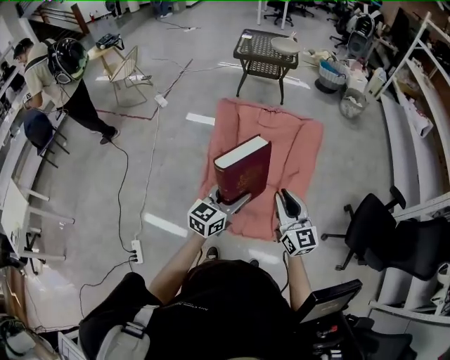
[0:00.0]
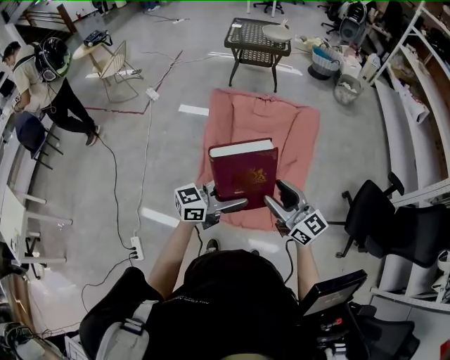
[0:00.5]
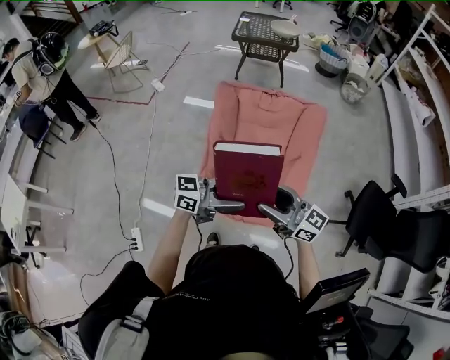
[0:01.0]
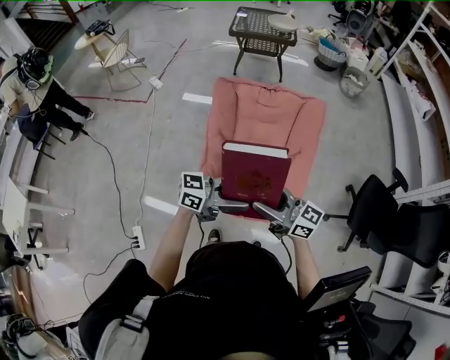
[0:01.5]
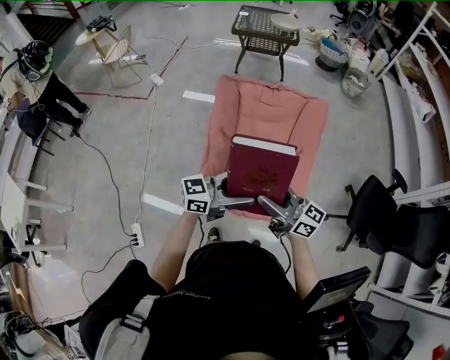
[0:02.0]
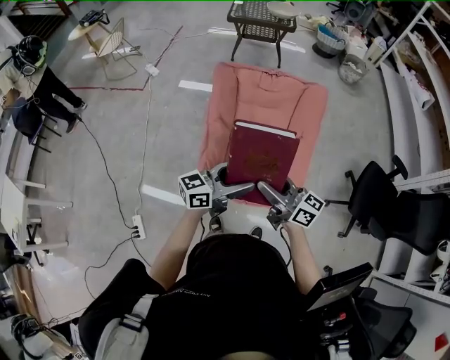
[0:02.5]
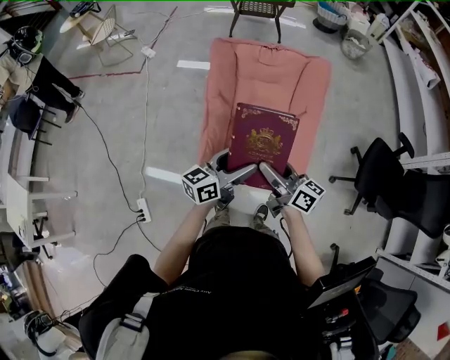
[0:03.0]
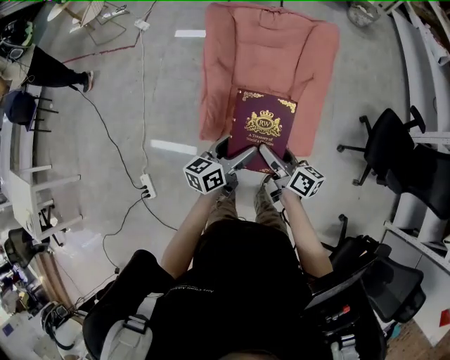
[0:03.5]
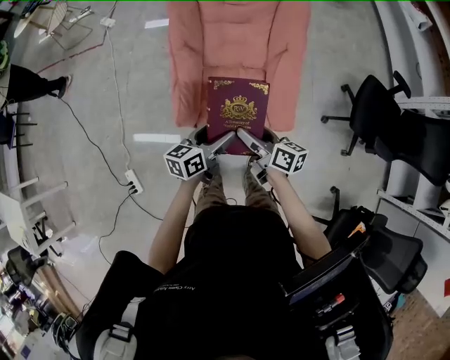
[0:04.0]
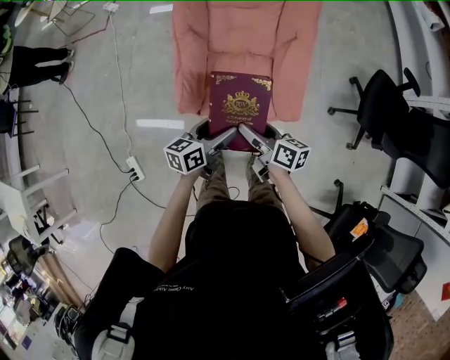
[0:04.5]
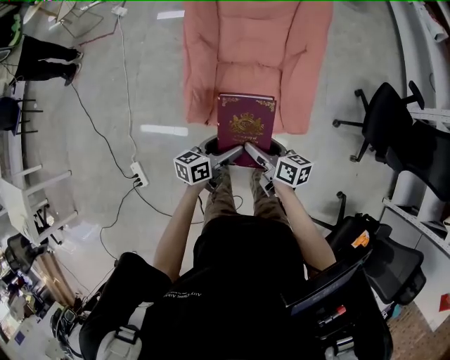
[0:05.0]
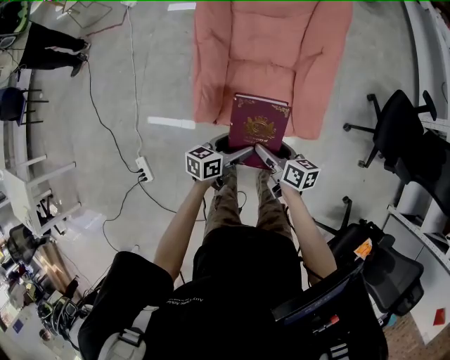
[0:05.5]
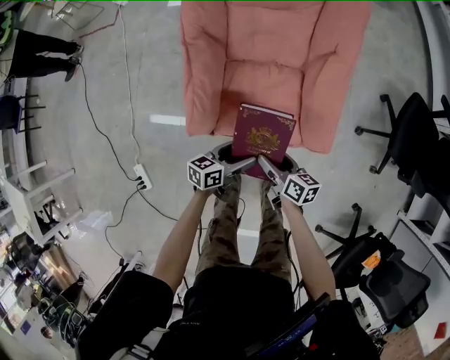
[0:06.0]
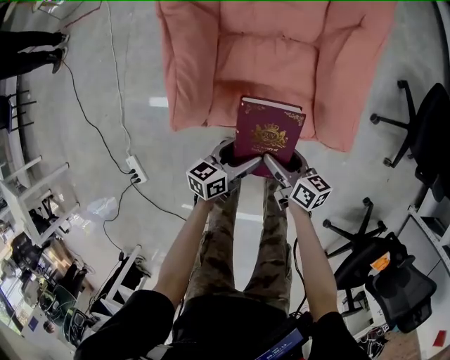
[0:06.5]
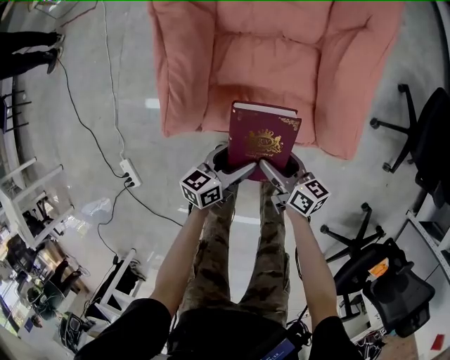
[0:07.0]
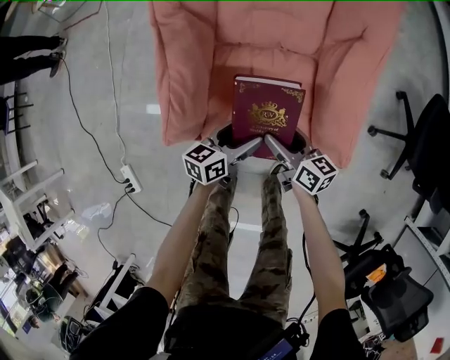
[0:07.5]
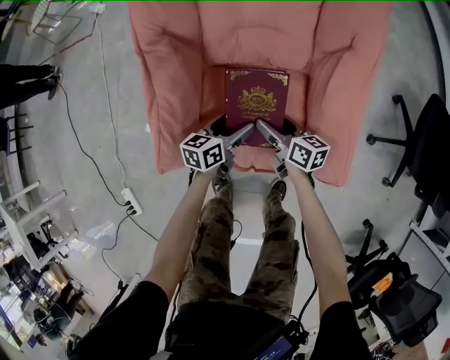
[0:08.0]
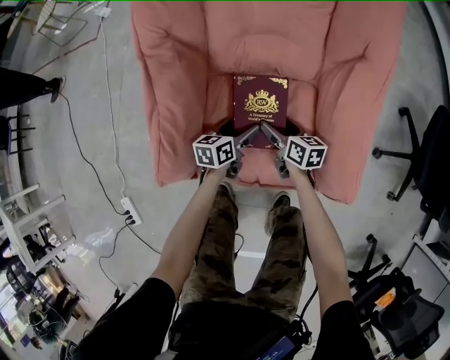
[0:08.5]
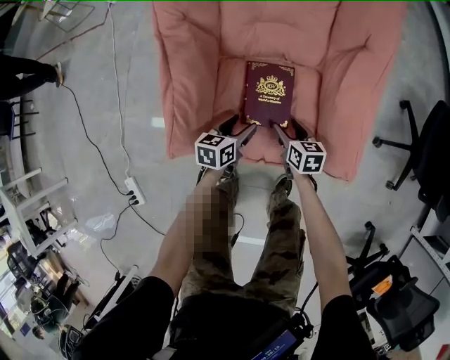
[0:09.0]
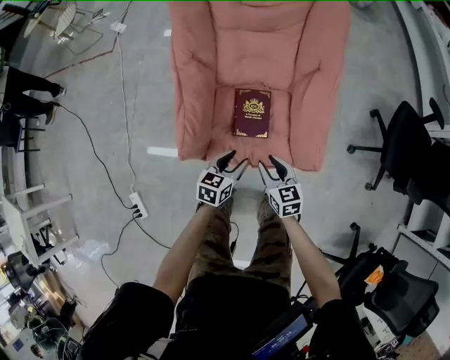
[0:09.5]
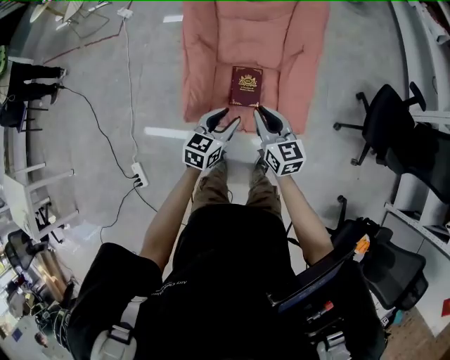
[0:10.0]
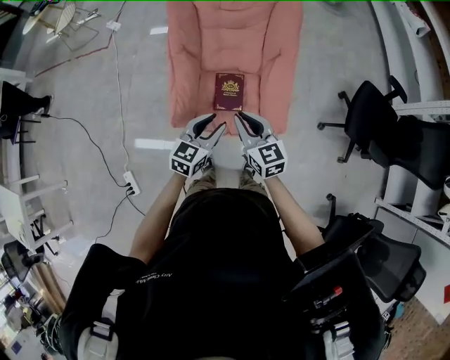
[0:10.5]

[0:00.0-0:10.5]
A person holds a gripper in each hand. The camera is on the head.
0:00.0 to 0:02.0: The right gripper ends up roughly 10 cm from where it was, swivels some 40 degrees, and opens up. Meanwhile the left gripper changes place by approximately 5 cm, and turns by about 40 degrees.
0:02.0 to 0:04.0: Both grippers travel together downward, about 20 cm. The right gripper swivels approximately 40 degrees. Meanwhile the left gripper swivels about 40 degrees.
0:04.0 to 0:06.5: The grippers both shift downward by about 30 cm.
0:06.5 to 0:08.5: Both grippers move forward and downward, roughly 25 cm.
0:08.5 to 0:10.5: Both grippers move upward, approximately 50 cm. The right gripper changes its angle by approximately 40 degrees, and closes up, while the left gripper rotates some 40 degrees, and closes its fingers.

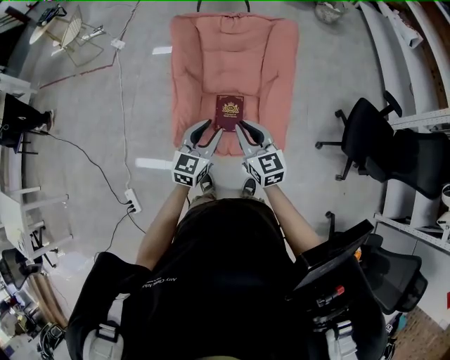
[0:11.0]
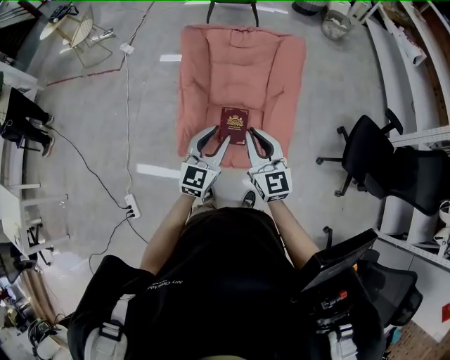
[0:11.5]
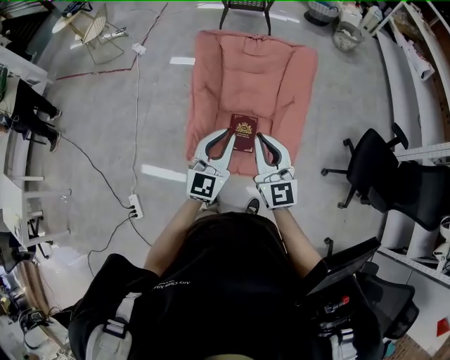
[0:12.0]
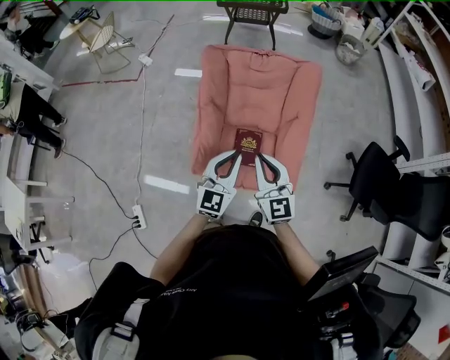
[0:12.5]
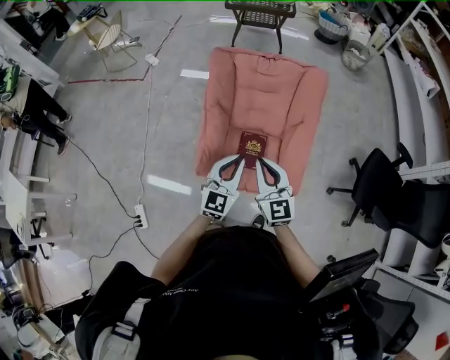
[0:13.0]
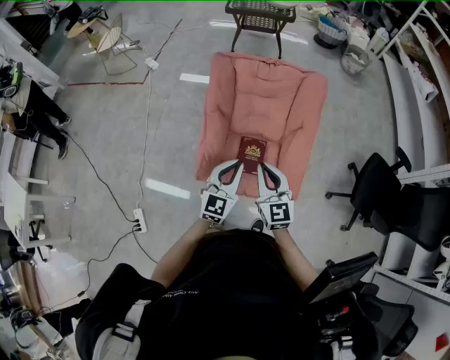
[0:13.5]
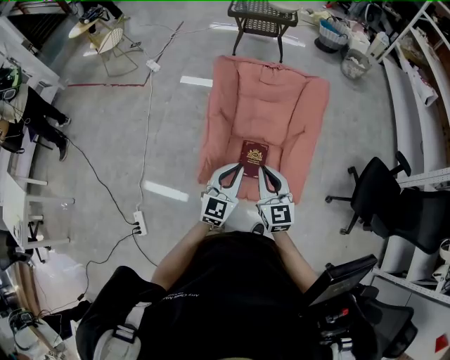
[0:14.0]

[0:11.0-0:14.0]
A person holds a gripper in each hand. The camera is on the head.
0:11.0 to 0:12.5: The two grippers go some 10 cm upward. The left gripper closes up.
0:12.5 to 0:14.0: The grippers make only small movements.

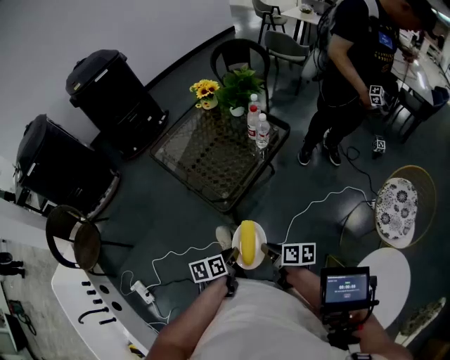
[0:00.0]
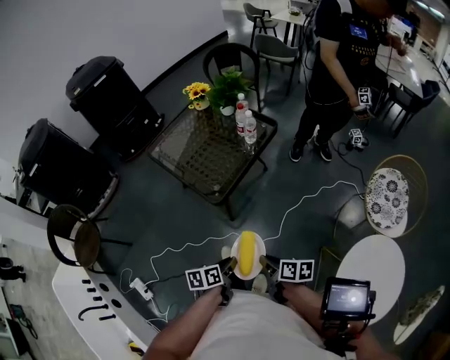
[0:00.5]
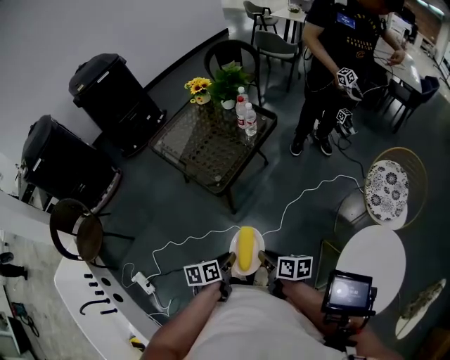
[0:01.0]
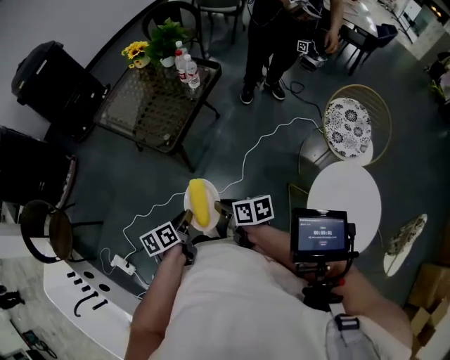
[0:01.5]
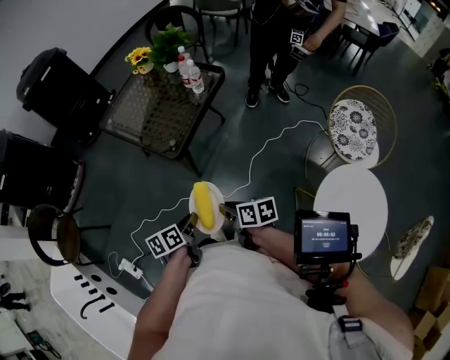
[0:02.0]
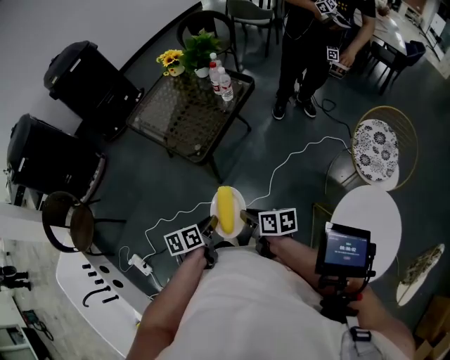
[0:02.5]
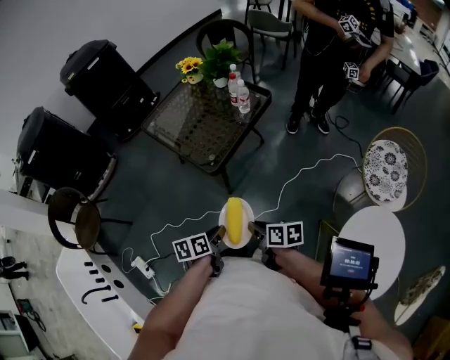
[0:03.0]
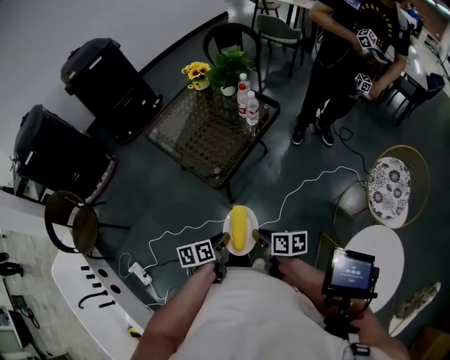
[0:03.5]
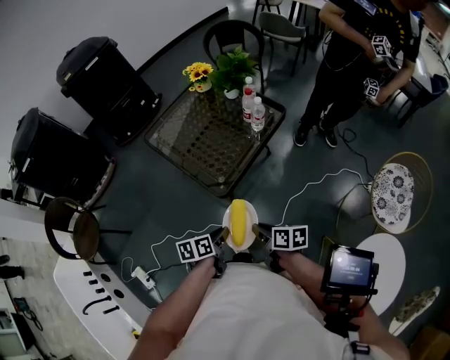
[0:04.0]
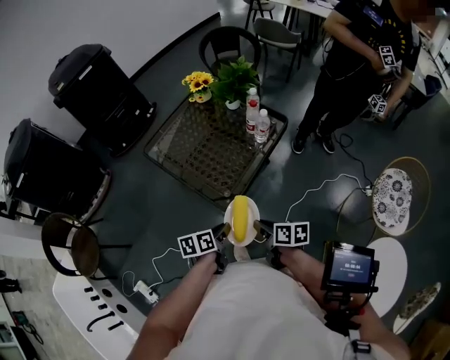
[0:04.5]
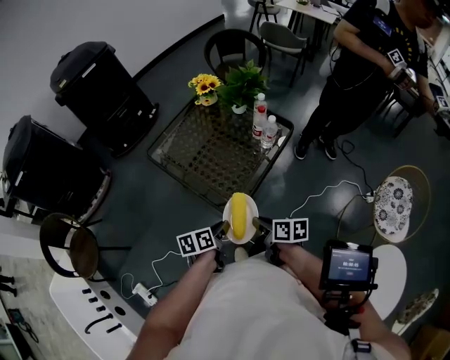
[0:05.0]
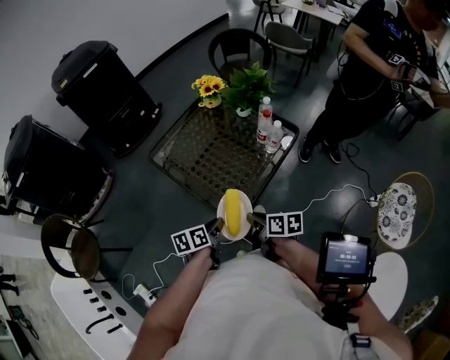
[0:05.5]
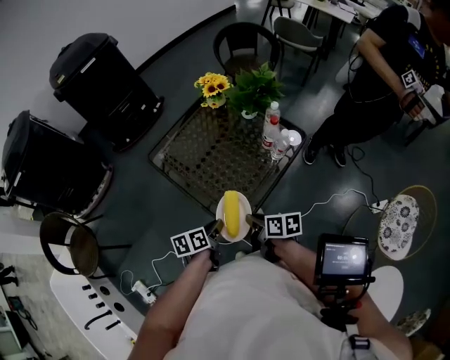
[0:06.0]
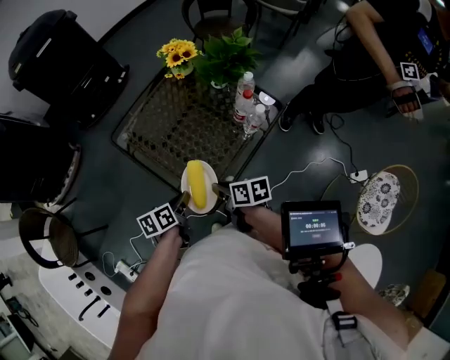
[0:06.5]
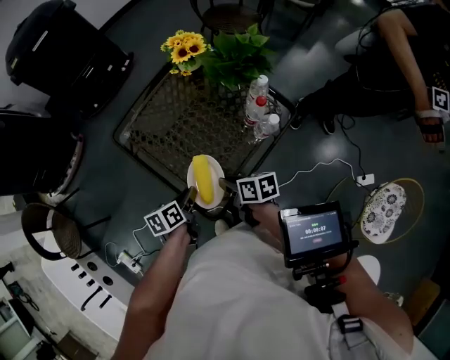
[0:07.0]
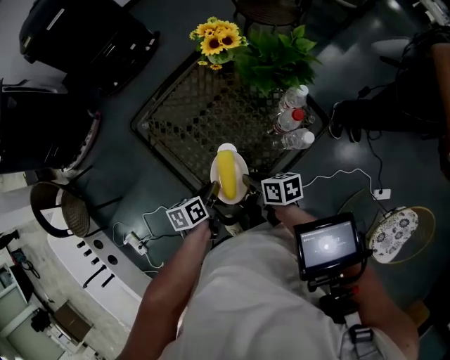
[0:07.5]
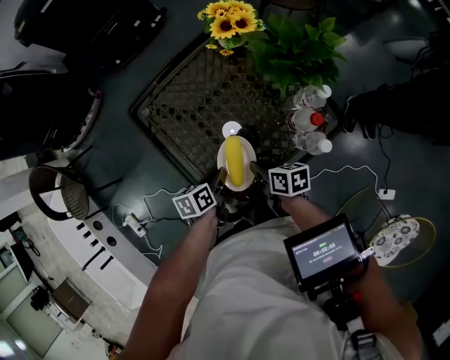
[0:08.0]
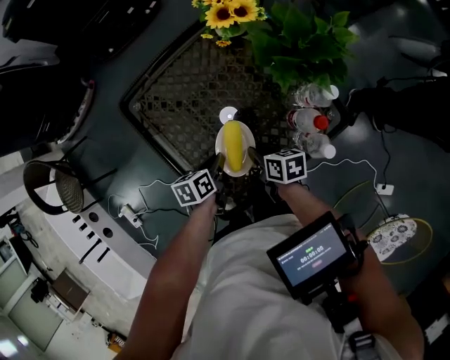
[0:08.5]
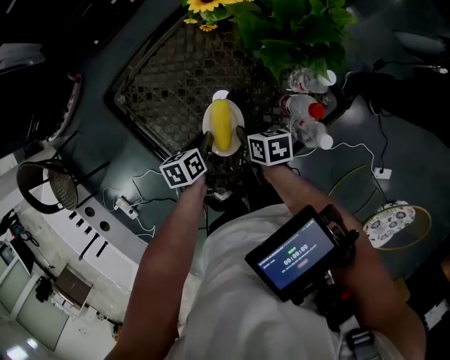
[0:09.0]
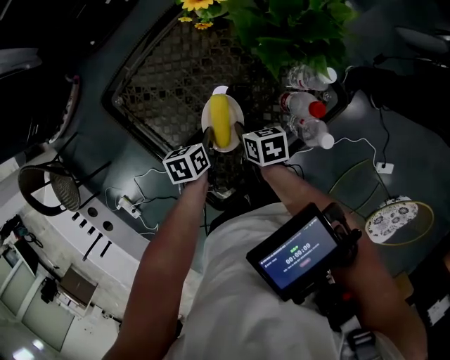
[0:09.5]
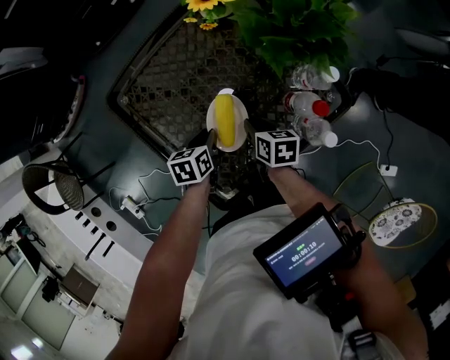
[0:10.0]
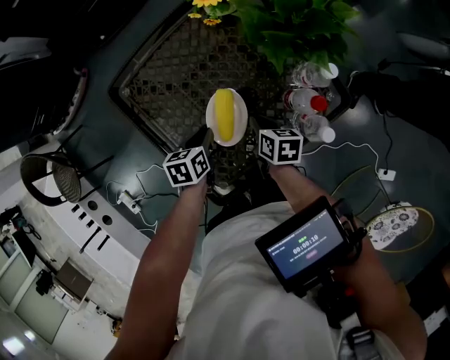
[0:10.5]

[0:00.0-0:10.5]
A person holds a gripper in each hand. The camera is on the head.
0:00.0 to 0:02.0: Both grippers travel together backward, roughly 15 cm.
0:02.0 to 0:04.0: Both grippers move forward, roughly 15 cm.
0:04.0 to 0:06.5: The two grippers go about 30 cm forward.
0:06.5 to 0:08.5: Both grippers move forward, downward and to the right, roughly 20 cm.
0:08.5 to 0:10.5: The grippers stay close to where they were, moving slightly.

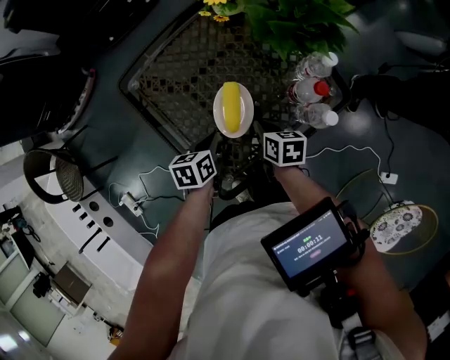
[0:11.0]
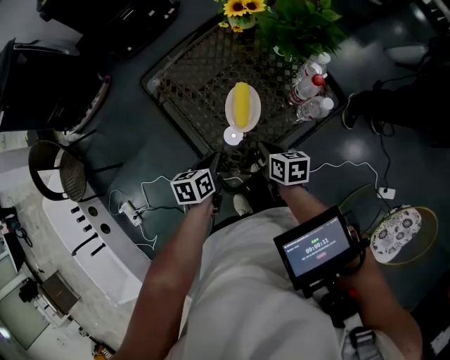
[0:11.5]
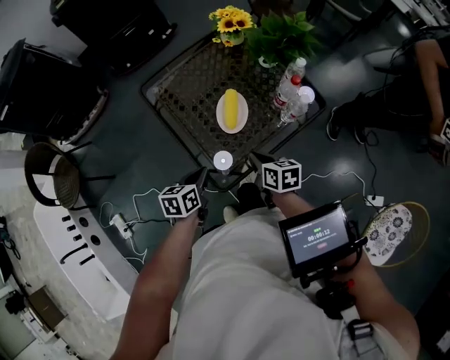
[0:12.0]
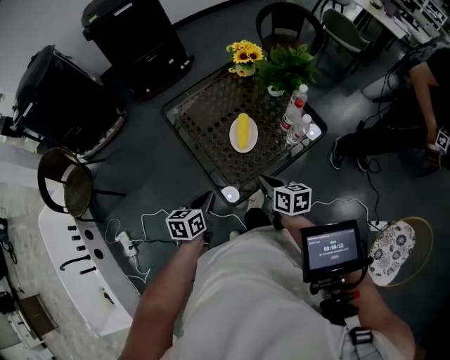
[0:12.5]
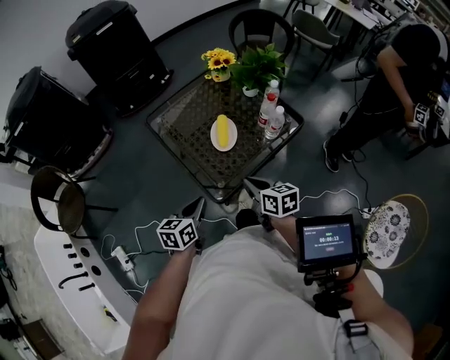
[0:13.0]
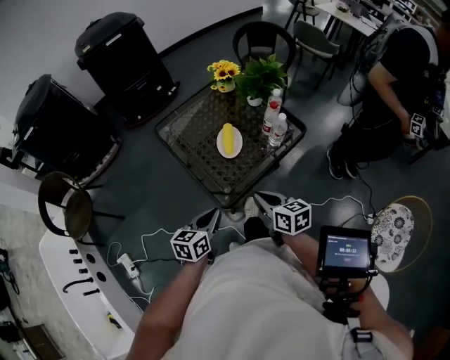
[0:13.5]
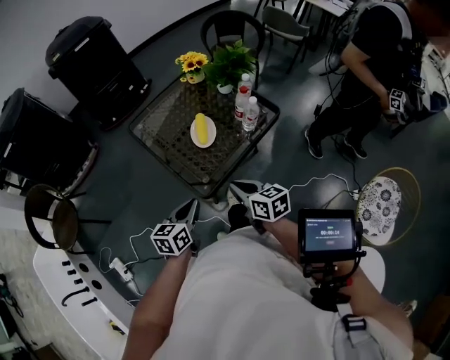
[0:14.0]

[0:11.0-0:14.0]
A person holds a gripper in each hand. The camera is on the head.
0:11.0 to 0:12.5: The left gripper is displaced backward, upward and to the left by some 25 cm; the right gripper moves backward and upward, some 25 cm.
0:12.5 to 0:14.0: Both grippers travel together backward and upward, roughly 10 cm.
